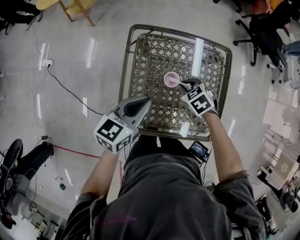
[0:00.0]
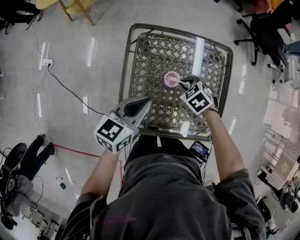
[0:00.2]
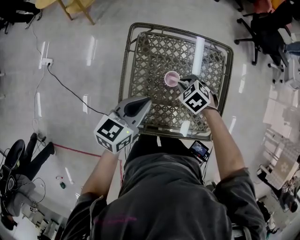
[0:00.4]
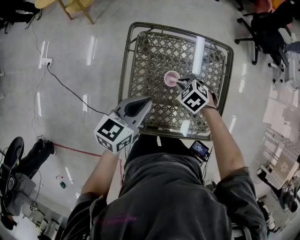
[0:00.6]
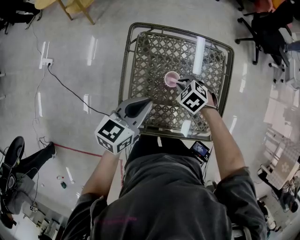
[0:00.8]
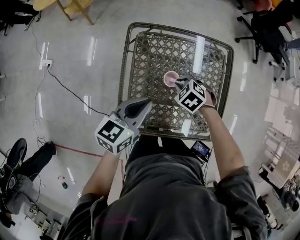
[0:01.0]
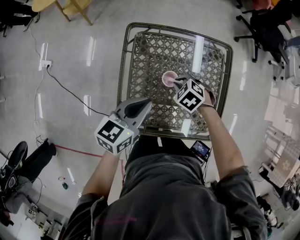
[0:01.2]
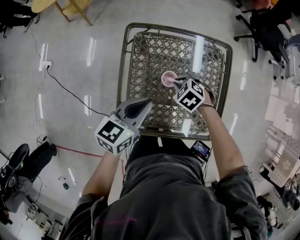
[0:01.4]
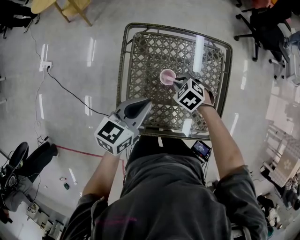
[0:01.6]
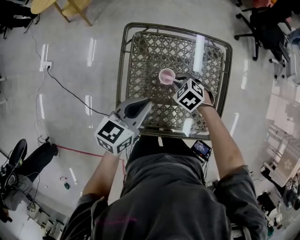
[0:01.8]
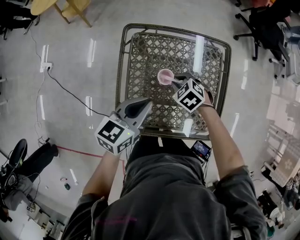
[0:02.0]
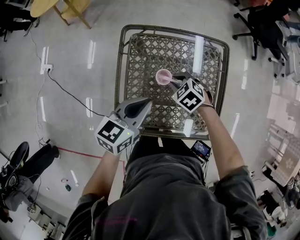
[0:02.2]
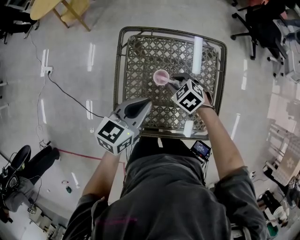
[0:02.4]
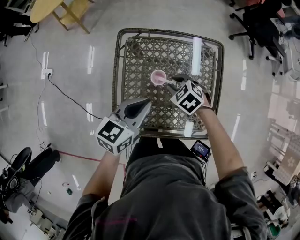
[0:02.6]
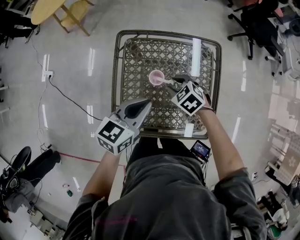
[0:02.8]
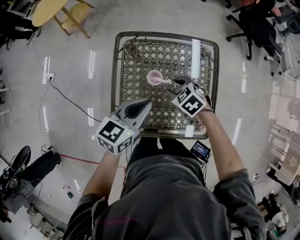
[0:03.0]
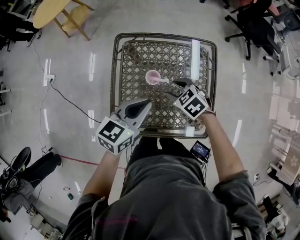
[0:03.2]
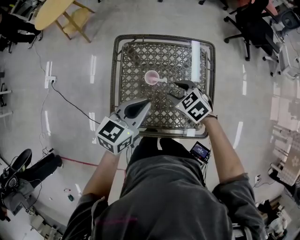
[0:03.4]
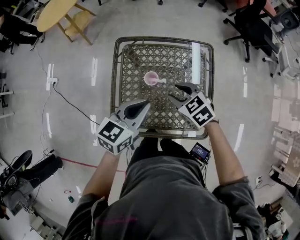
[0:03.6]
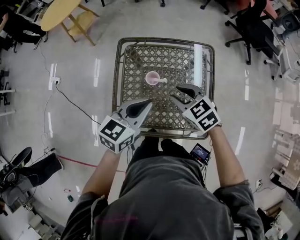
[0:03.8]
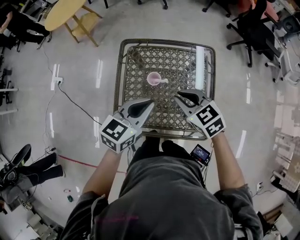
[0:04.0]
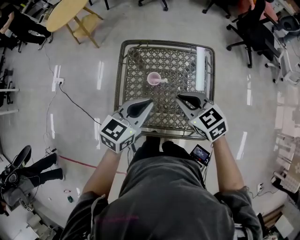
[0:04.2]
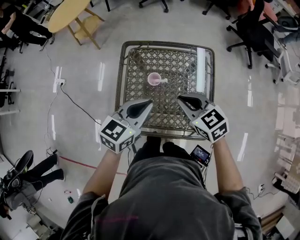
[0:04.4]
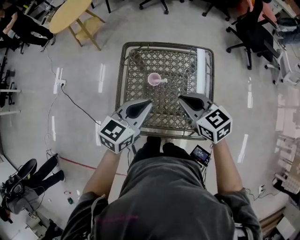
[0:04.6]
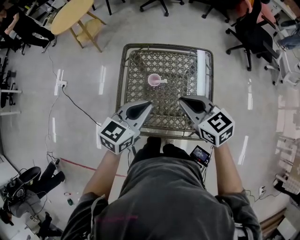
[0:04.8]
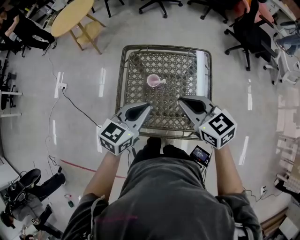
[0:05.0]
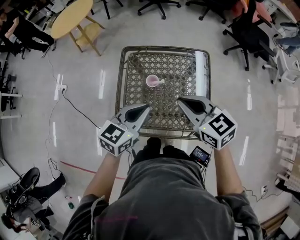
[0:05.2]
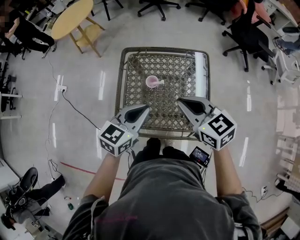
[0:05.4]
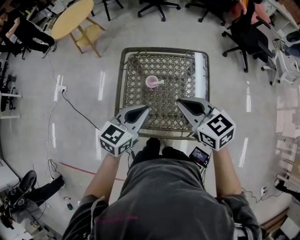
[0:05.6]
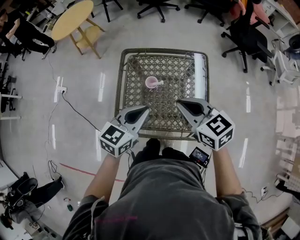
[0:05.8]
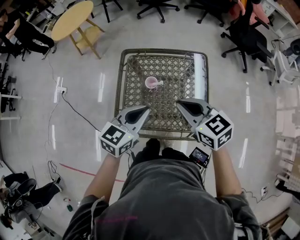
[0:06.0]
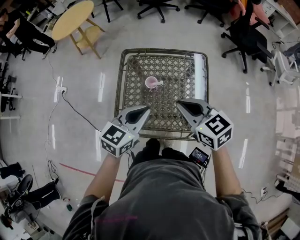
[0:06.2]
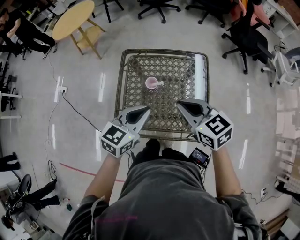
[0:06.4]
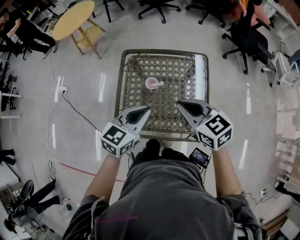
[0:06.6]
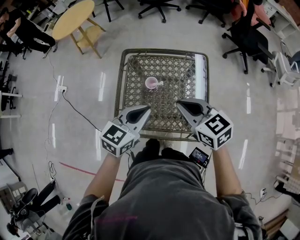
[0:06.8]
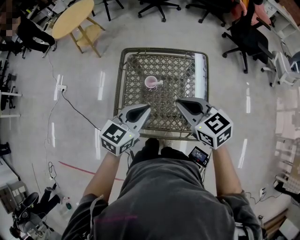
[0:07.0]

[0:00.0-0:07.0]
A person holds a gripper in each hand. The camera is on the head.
0:00.0 to 0:01.4: The grippers make only small movements.
0:01.4 to 0:02.8: The right gripper ends up some 5 cm from where it was; the left gripper moves to the right, about 5 cm.
0:02.8 to 0:04.2: The right gripper is displaced upward and backward by roughly 20 cm, and swivels some 30 degrees; the left gripper heads upward, covering about 5 cm.
0:04.2 to 0:05.6: The right gripper shifts approximately 10 cm upward.
0:05.6 to 0:07.0: Neither gripper changes place.

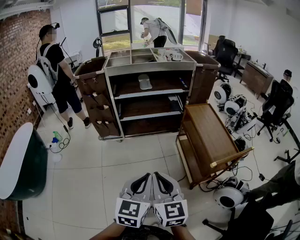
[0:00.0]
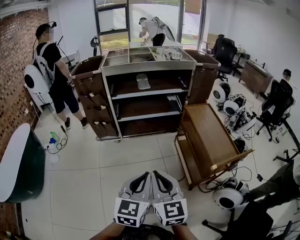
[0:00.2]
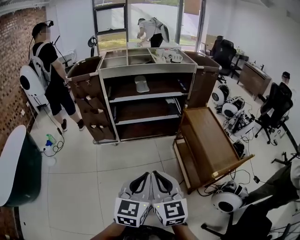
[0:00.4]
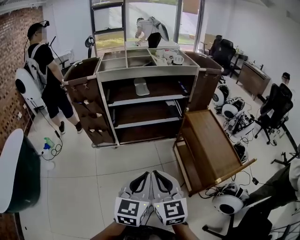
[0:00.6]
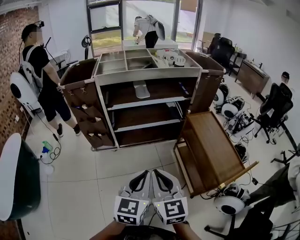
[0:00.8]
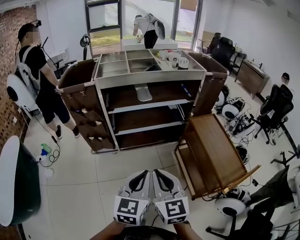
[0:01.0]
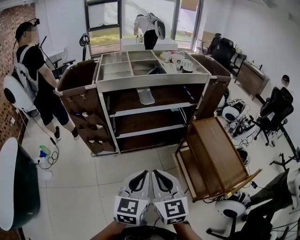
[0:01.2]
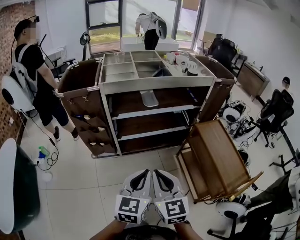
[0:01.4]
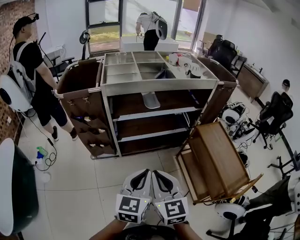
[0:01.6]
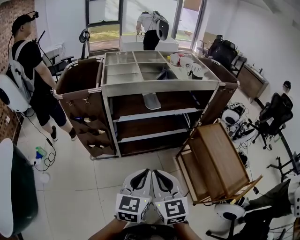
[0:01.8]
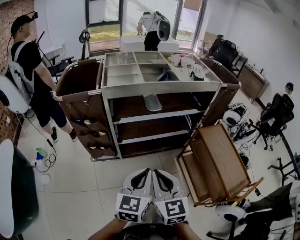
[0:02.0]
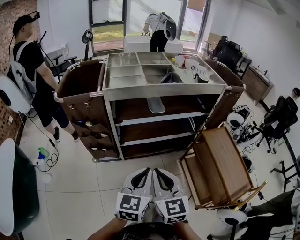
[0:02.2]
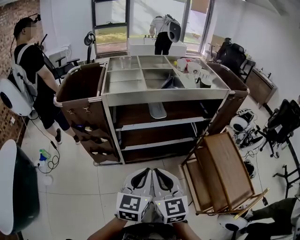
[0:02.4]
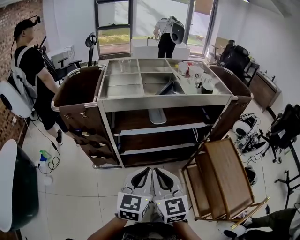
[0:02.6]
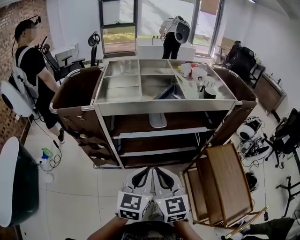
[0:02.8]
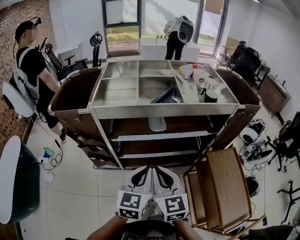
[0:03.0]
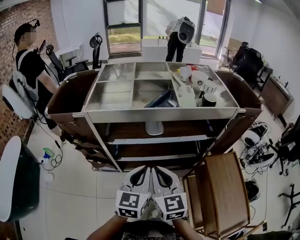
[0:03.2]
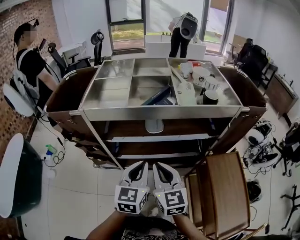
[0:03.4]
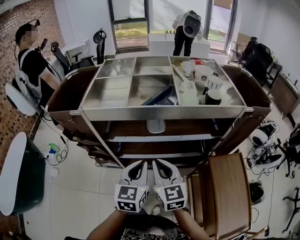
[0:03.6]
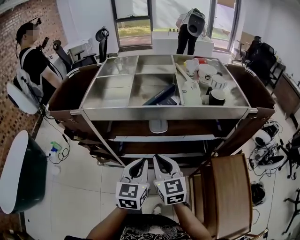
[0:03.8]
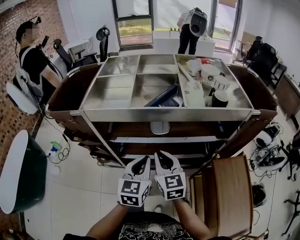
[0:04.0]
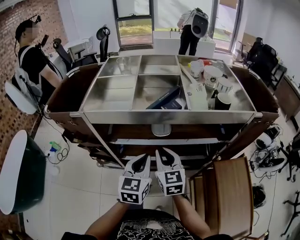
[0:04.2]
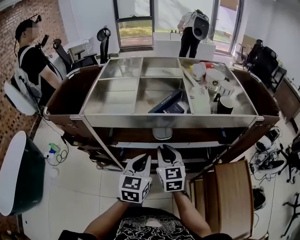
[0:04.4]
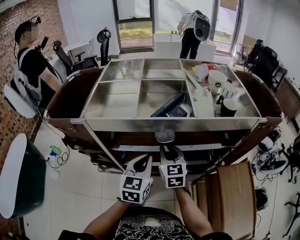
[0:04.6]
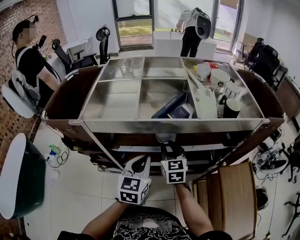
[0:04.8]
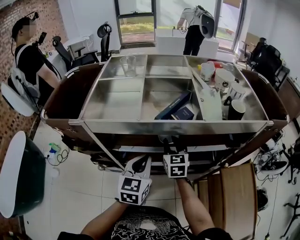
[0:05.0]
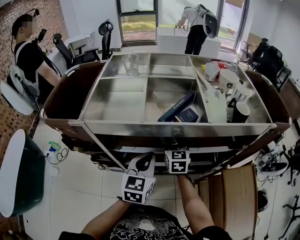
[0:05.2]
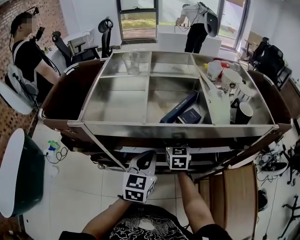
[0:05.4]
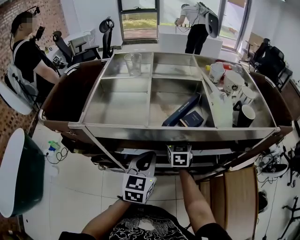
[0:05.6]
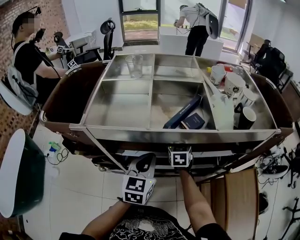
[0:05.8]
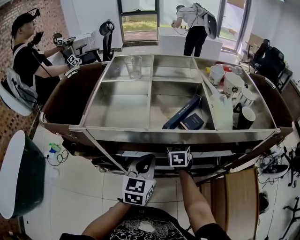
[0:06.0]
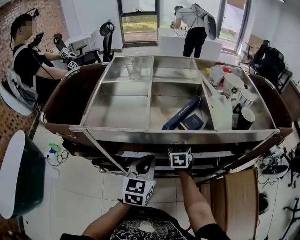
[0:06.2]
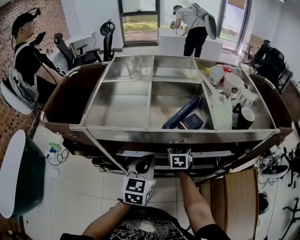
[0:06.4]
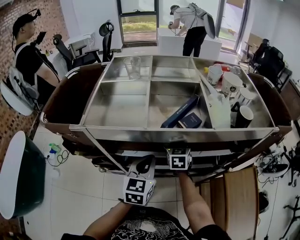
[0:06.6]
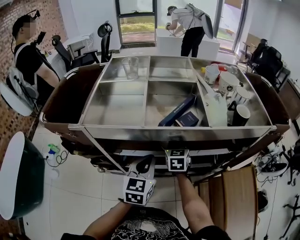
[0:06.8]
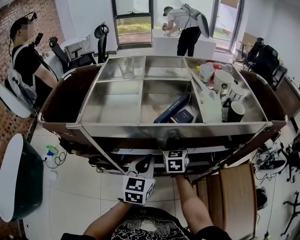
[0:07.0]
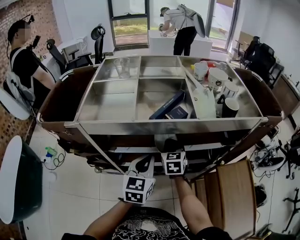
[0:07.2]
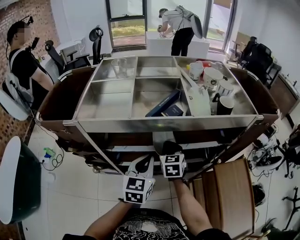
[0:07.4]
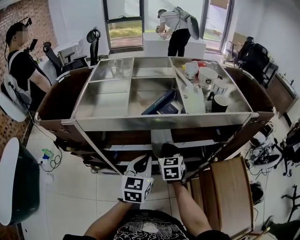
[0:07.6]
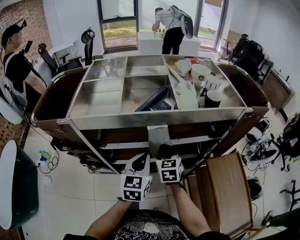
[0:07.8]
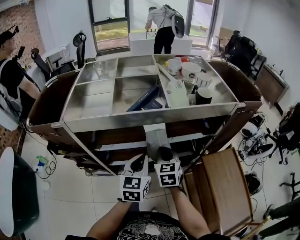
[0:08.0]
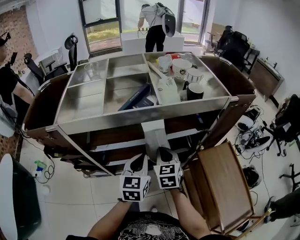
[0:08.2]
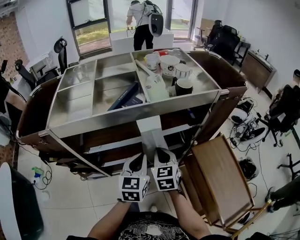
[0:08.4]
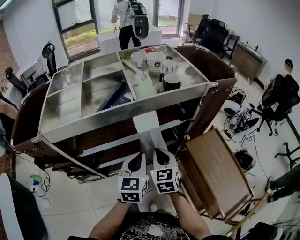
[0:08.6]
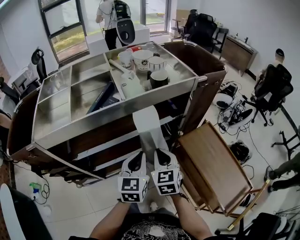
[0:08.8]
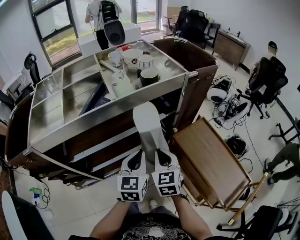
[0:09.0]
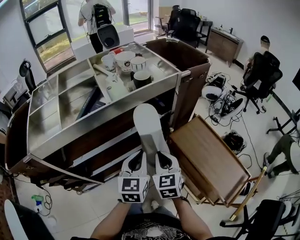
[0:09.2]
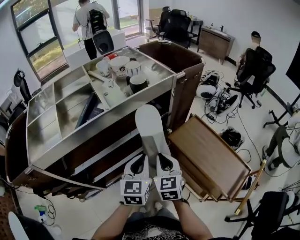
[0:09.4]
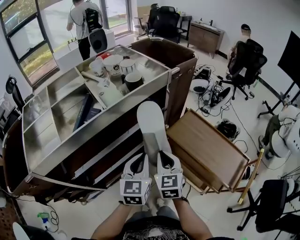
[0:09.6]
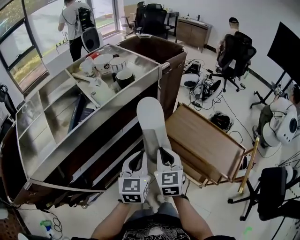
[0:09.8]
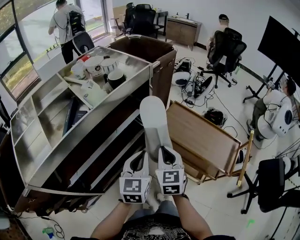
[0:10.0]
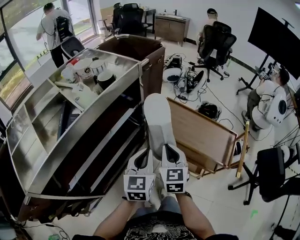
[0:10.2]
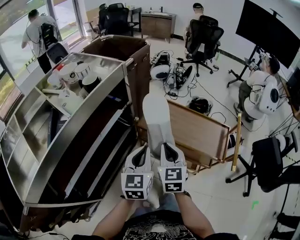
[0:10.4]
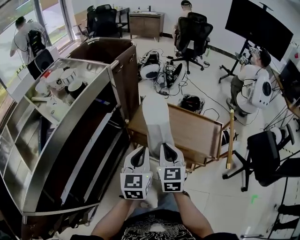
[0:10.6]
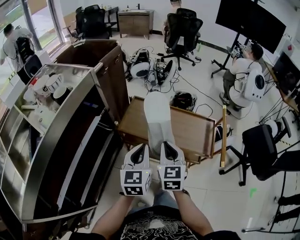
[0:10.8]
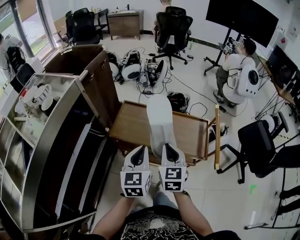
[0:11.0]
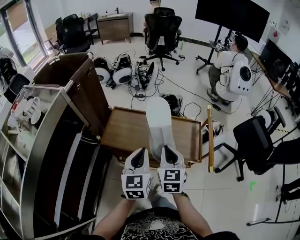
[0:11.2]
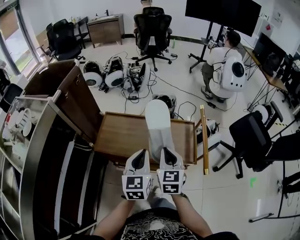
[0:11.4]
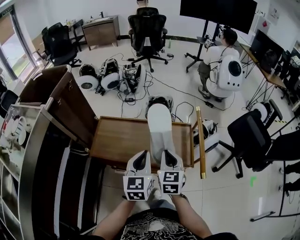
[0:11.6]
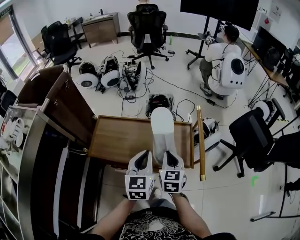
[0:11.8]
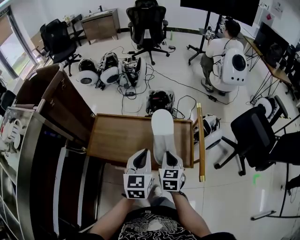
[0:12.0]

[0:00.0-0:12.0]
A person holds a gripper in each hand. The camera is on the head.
0:00.0 to 0:01.6: Both grippers move forward and to the left, about 35 cm.
0:01.6 to 0:03.0: The two grippers go about 20 cm forward.
0:03.0 to 0:04.4: Both grippers travel together forward and downward, approximately 20 cm.
0:04.4 to 0:06.0: The left gripper is displaced forward by some 5 cm. Meanwhile the right gripper shifts approximately 20 cm forward and downward, and swivels about 20 degrees.
0:06.0 to 0:07.6: The left gripper moves to the right and backward, roughly 10 cm, while the right gripper shifts some 10 cm backward and upward.
0:07.6 to 0:09.0: The left gripper goes some 15 cm to the right, and swivels roughly 20 degrees, while the right gripper goes about 20 cm to the right and backward.
0:09.0 to 0:10.4: The left gripper shifts by some 10 cm, and swivels some 30 degrees. Meanwhile the right gripper shifts by approximately 15 cm, and turns by approximately 40 degrees.
0:10.4 to 0:12.0: The left gripper is displaced to the right and forward by about 30 cm, and swivels about 20 degrees, while the right gripper goes some 35 cm to the right, downward and forward, and turns by some 30 degrees.

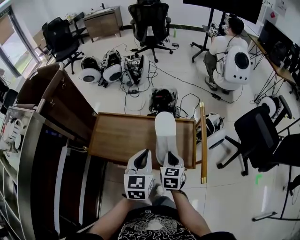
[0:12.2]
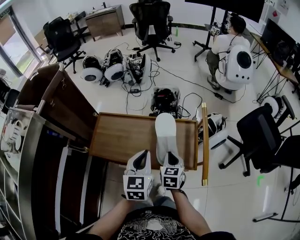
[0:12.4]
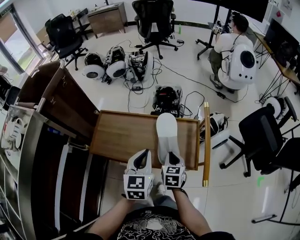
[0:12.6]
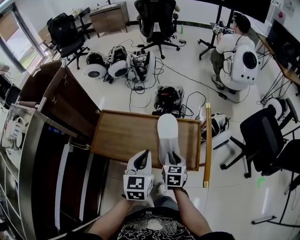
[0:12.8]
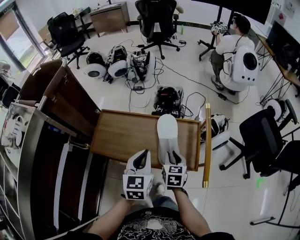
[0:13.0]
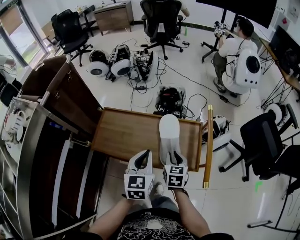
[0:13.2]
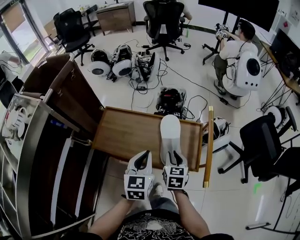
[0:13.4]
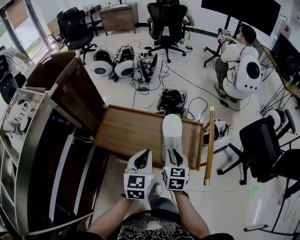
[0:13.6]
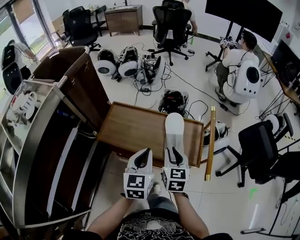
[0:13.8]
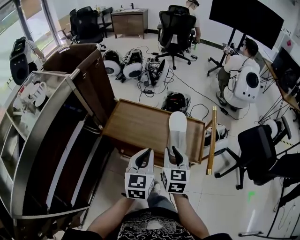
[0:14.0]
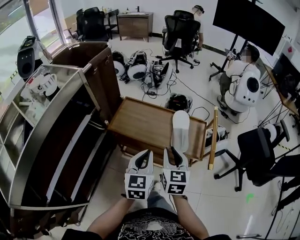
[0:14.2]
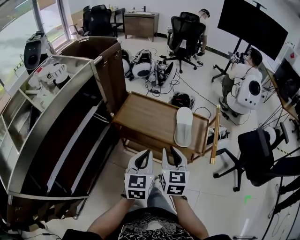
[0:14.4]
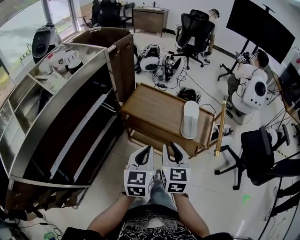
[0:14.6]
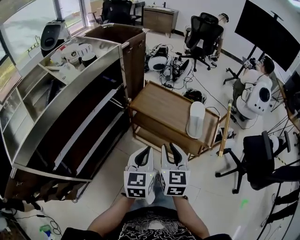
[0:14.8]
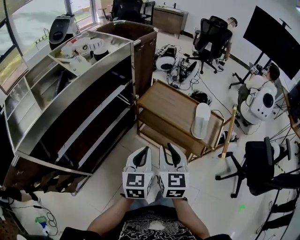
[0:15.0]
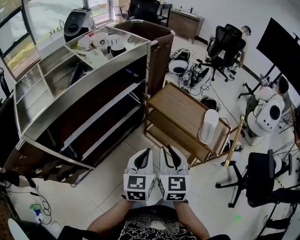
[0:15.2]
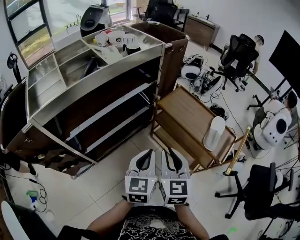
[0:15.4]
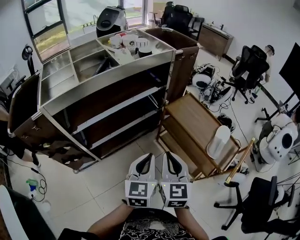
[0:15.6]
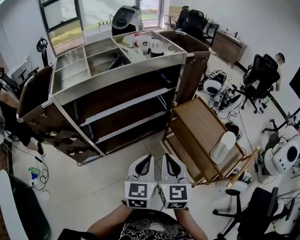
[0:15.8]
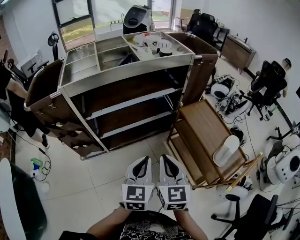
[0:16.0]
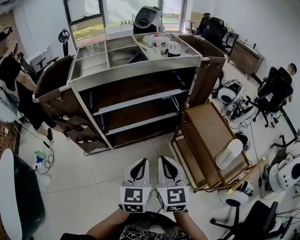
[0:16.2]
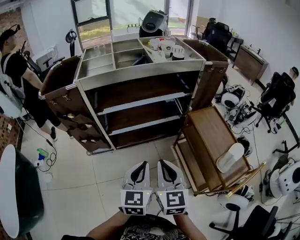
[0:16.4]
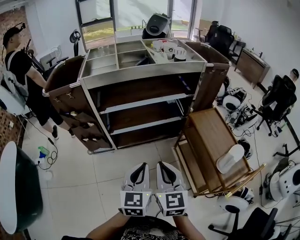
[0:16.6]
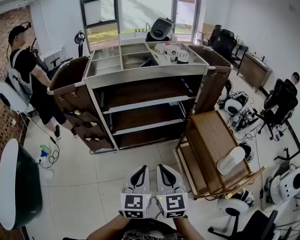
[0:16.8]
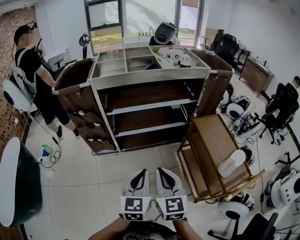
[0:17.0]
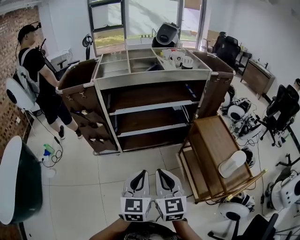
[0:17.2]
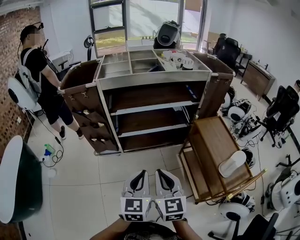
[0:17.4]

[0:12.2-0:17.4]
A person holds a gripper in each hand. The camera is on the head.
0:12.2 to 0:14.0: The right gripper goes about 15 cm upward, backward and to the left. The left gripper goes about 10 cm backward and to the left.
0:14.0 to 0:15.6: The right gripper changes place by roughly 35 cm, and rotates about 40 degrees. Meanwhile the left gripper ends up some 30 cm from where it was, and swivels some 40 degrees.
0:15.6 to 0:17.4: The right gripper shifts by about 15 cm, and rotates about 30 degrees. Meanwhile the left gripper ends up approximately 20 cm from where it was, and turns by approximately 30 degrees.
